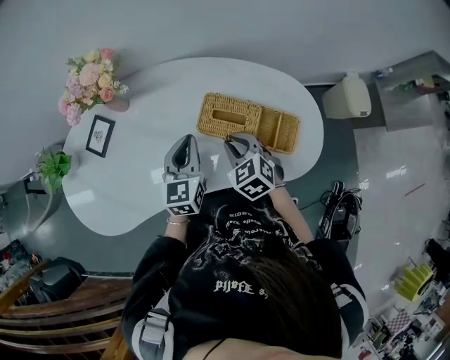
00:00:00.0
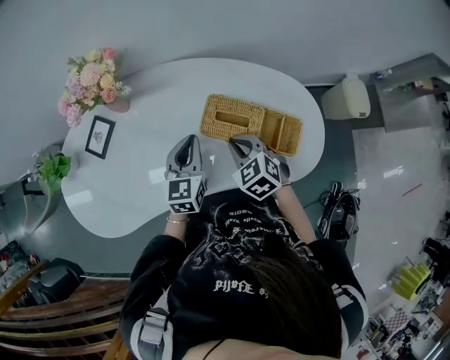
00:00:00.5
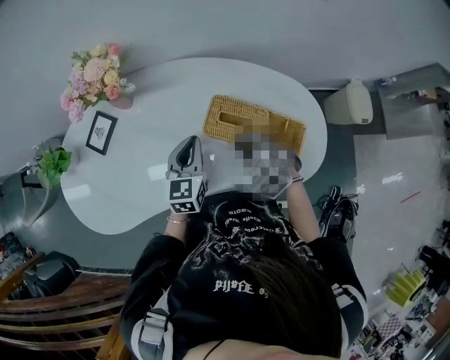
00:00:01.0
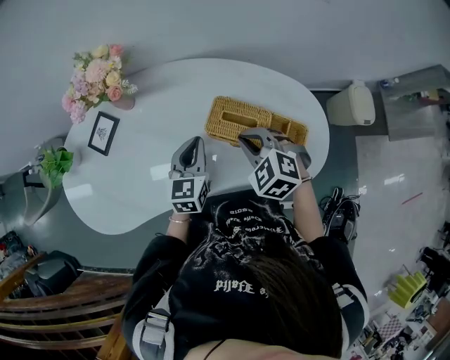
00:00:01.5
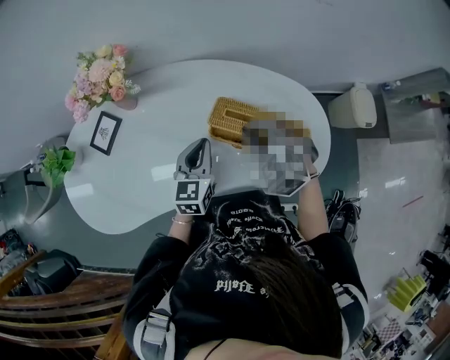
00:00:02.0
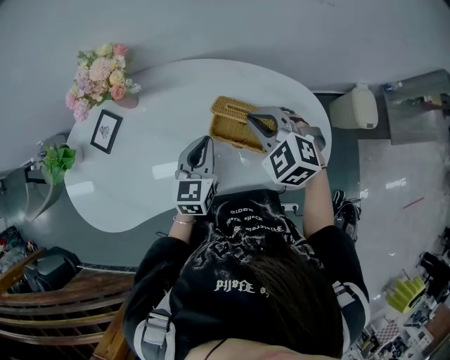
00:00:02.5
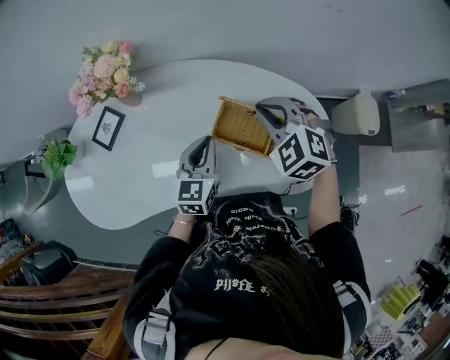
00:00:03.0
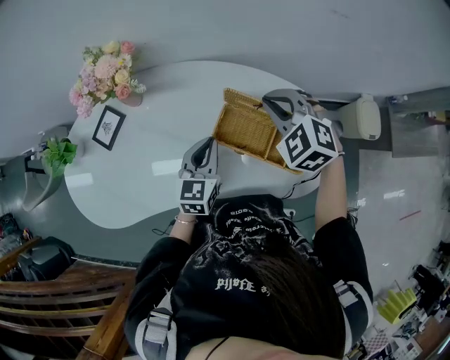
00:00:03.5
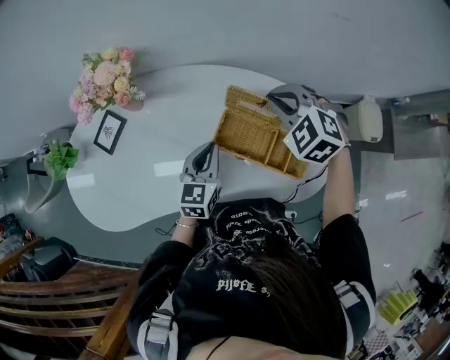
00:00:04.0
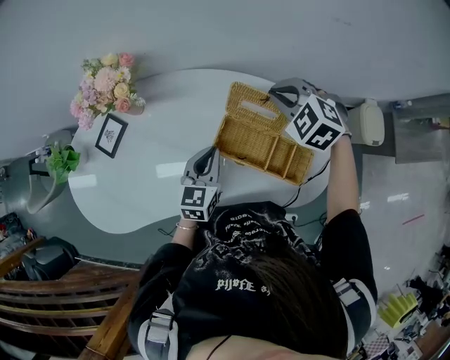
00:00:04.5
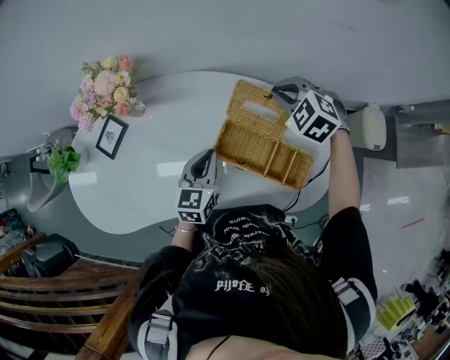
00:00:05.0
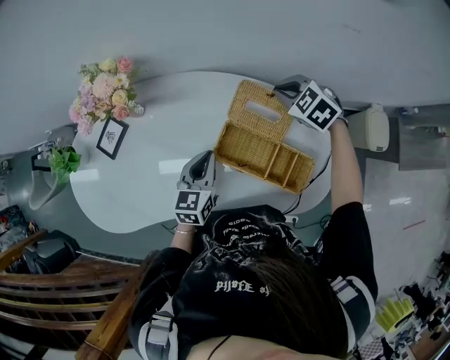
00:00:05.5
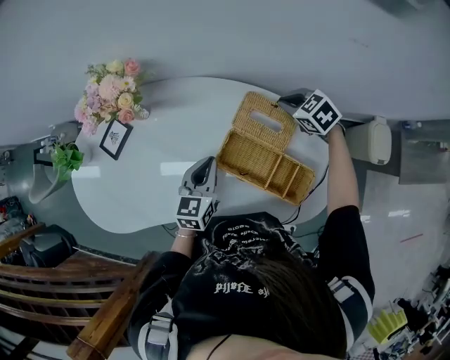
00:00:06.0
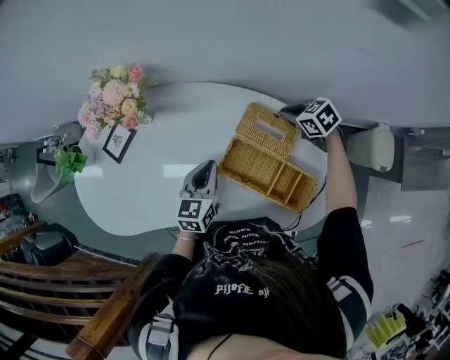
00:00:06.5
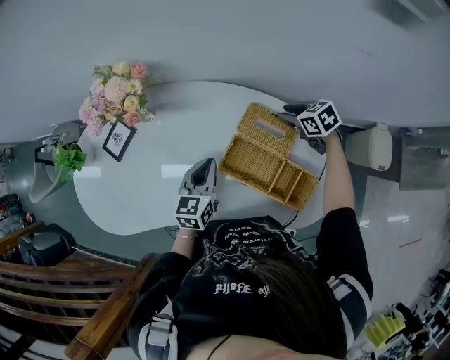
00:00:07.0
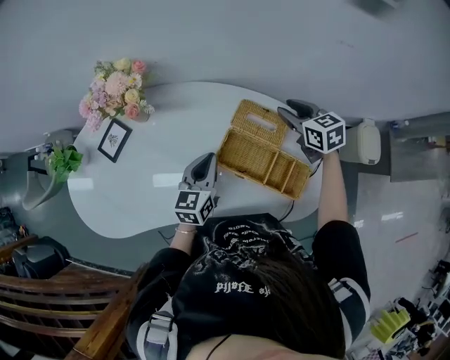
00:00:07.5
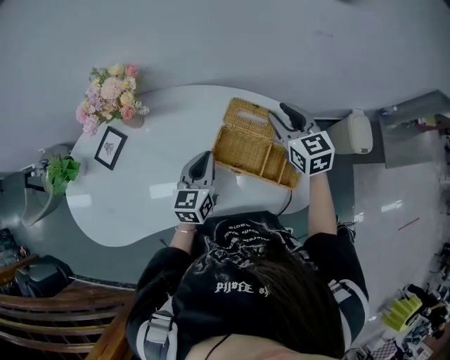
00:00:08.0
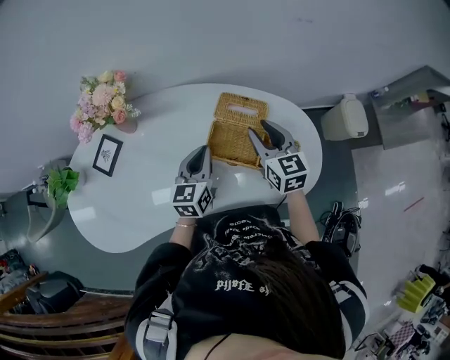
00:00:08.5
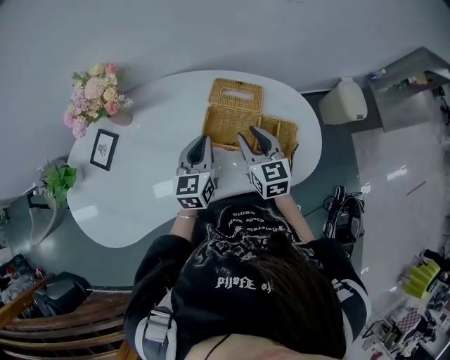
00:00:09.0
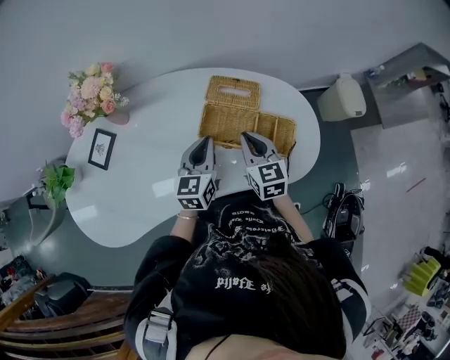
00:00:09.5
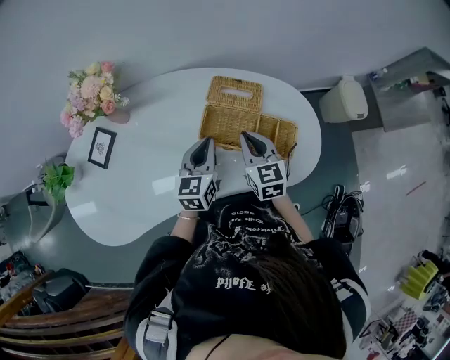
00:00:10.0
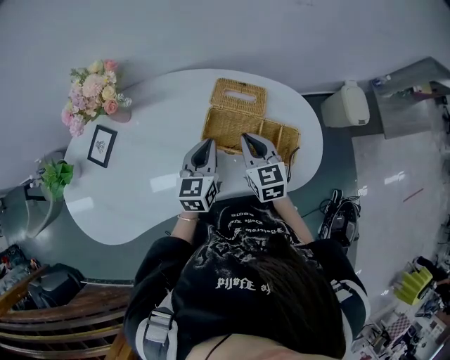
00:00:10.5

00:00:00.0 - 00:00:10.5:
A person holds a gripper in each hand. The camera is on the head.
00:00:00.0 - 00:00:02.0: The right gripper heads upward, covering some 5 cm, and swivels approximately 30 degrees.
00:00:02.0 - 00:00:04.0: The right gripper goes roughly 15 cm forward and to the right.
00:00:04.0 - 00:00:06.5: The right gripper is displaced downward, forward and to the right by about 20 cm, and changes its angle by approximately 40 degrees.
00:00:06.5 - 00:00:08.5: The left gripper ends up roughly 5 cm from where it was. The right gripper shifts by roughly 20 cm, points its fingers approximately 30 degrees further upward, and opens its fingers.
00:00:08.5 - 00:00:10.5: The right gripper moves downward, roughly 5 cm, and closes its fingers.

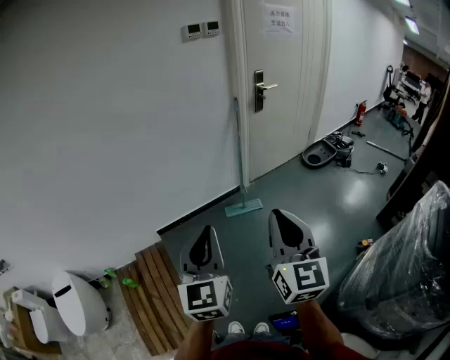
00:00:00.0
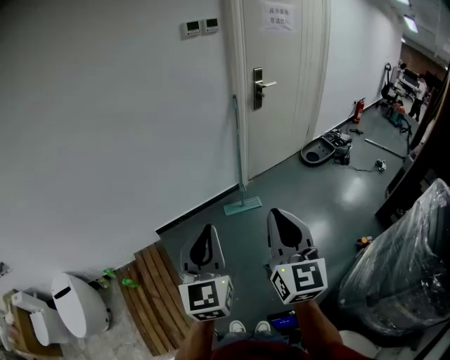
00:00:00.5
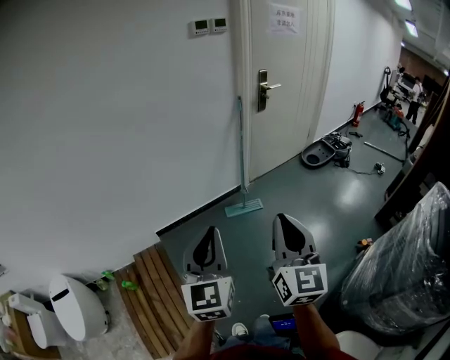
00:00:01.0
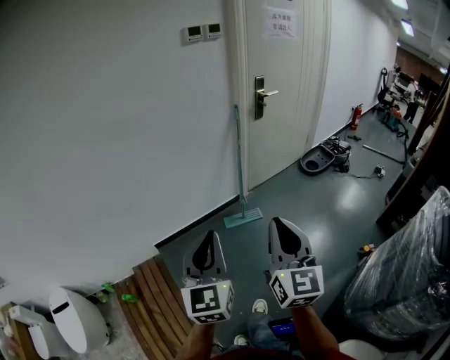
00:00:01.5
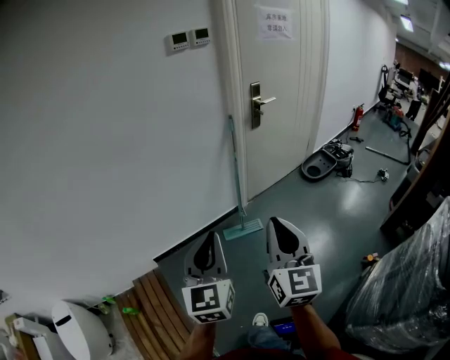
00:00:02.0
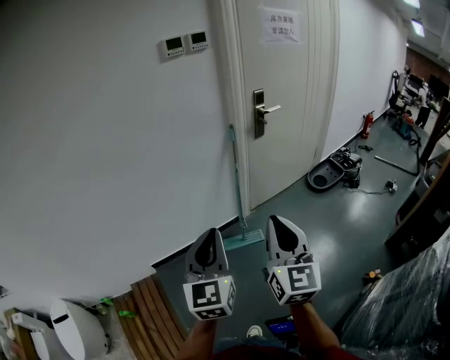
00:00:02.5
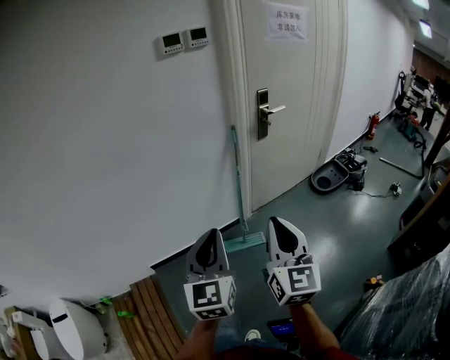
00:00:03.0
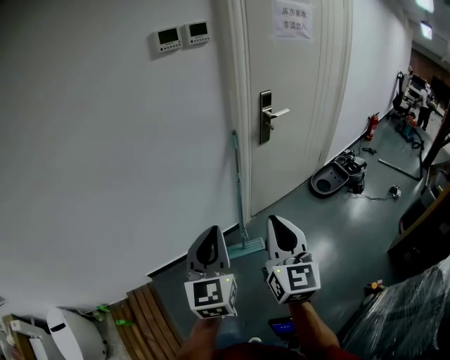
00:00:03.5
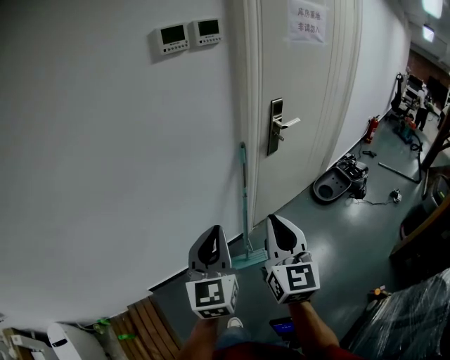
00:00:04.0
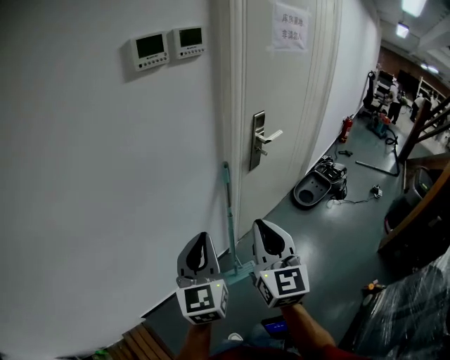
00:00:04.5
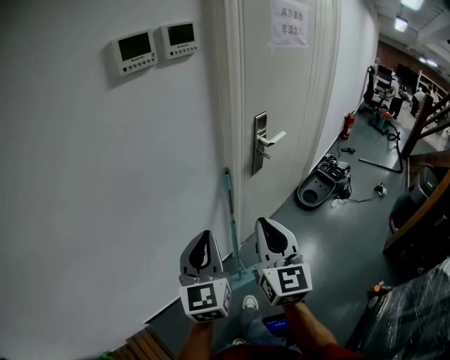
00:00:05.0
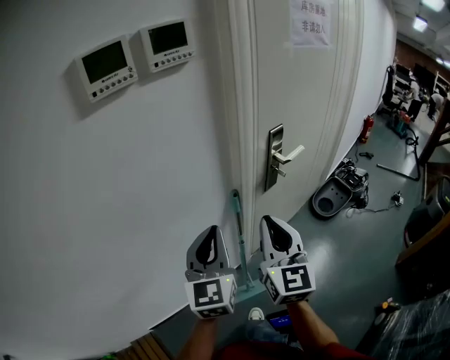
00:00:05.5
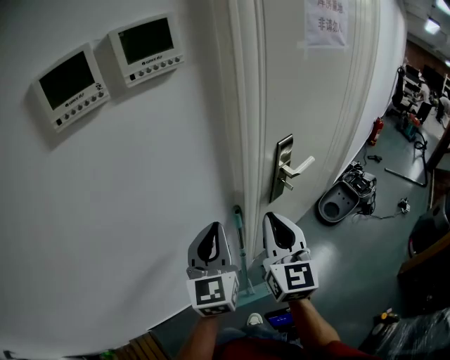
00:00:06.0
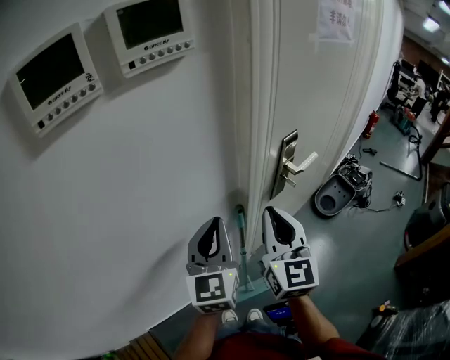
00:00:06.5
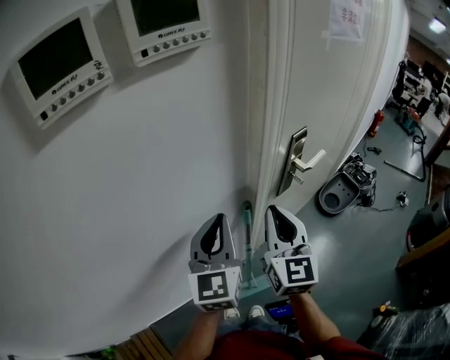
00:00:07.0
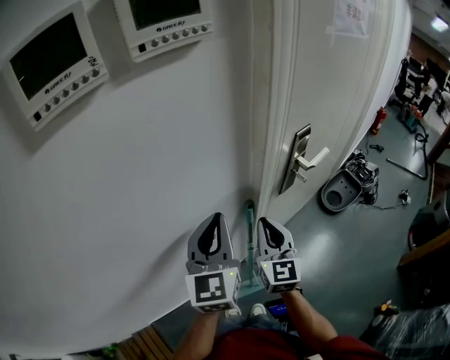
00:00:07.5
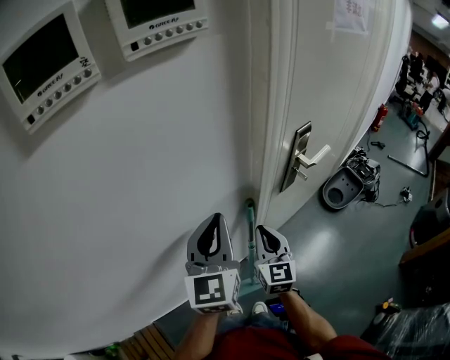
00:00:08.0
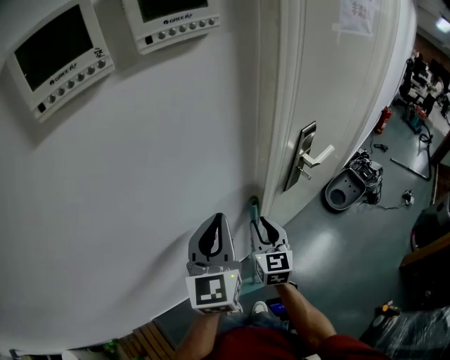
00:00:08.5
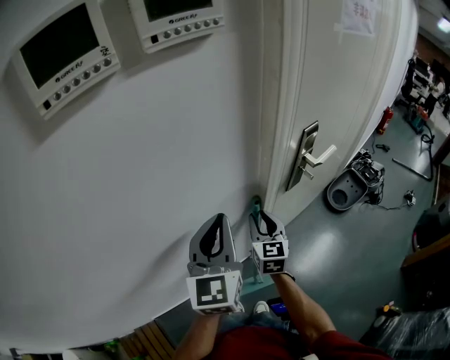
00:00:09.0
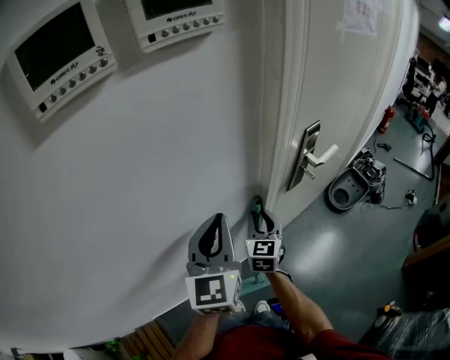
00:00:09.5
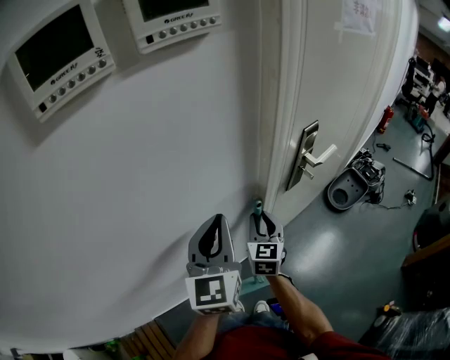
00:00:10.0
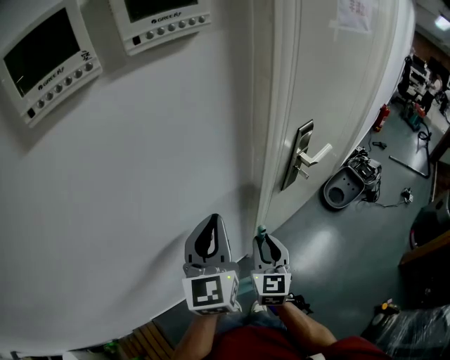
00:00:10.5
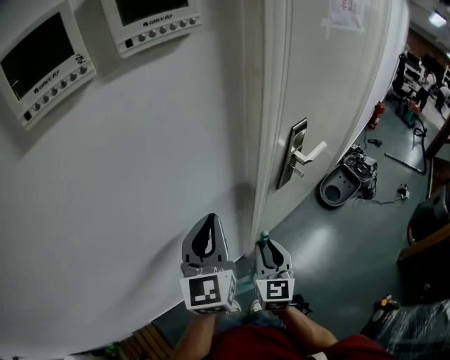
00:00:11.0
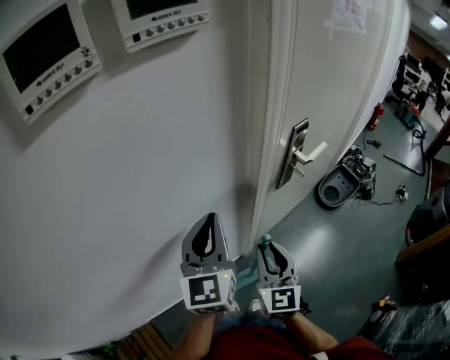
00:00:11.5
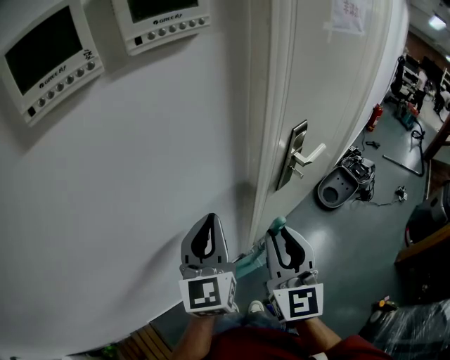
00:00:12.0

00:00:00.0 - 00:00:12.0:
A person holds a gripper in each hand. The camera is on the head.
00:00:00.0 - 00:00:02.0: Both grippers travel together forward, some 20 cm.
00:00:02.0 - 00:00:04.0: The grippers both shift forward by approximately 35 cm.
00:00:04.0 - 00:00:06.0: The grippers both shift forward by some 40 cm.
00:00:06.0 - 00:00:08.0: The right gripper moves downward, about 15 cm.
00:00:08.0 - 00:00:10.0: The right gripper moves approximately 5 cm, and opens its fingers.
00:00:10.0 - 00:00:12.0: The right gripper heads upward and backward, covering approximately 20 cm.

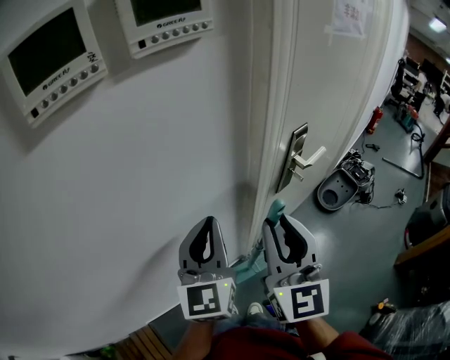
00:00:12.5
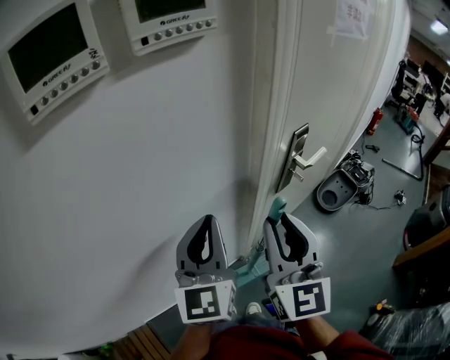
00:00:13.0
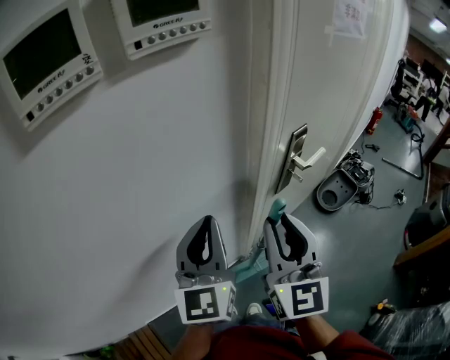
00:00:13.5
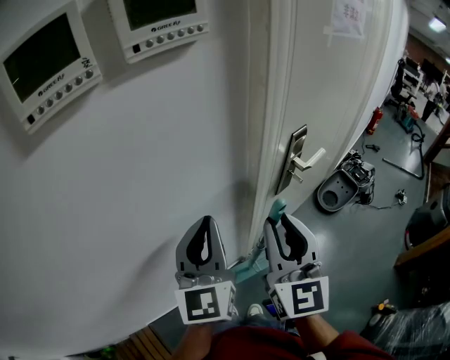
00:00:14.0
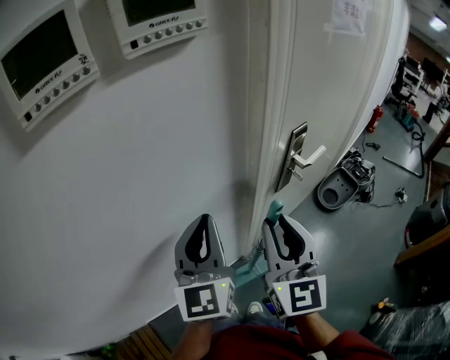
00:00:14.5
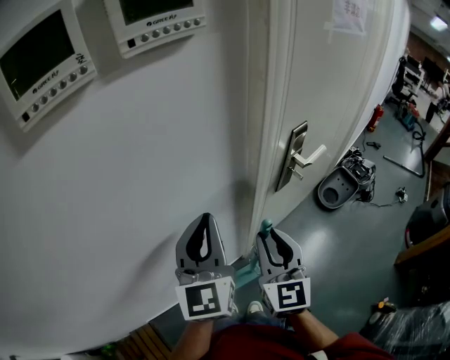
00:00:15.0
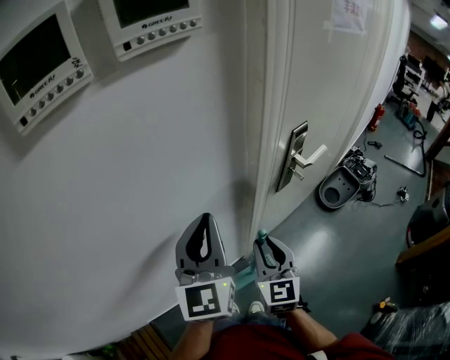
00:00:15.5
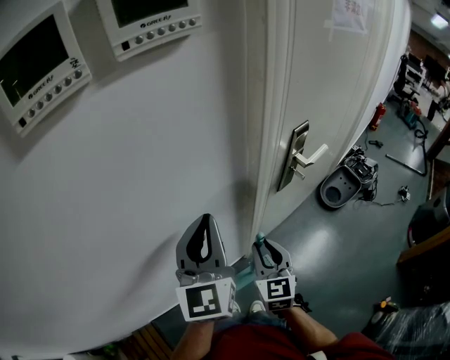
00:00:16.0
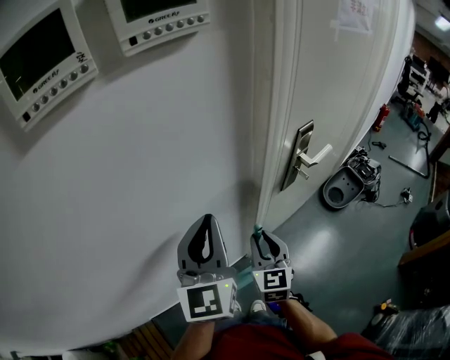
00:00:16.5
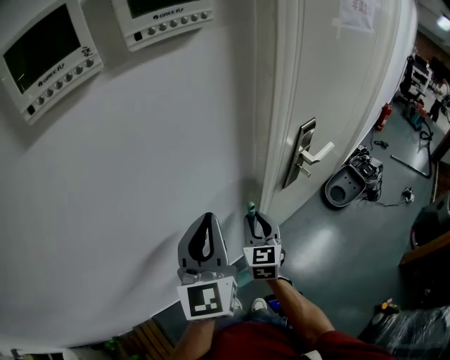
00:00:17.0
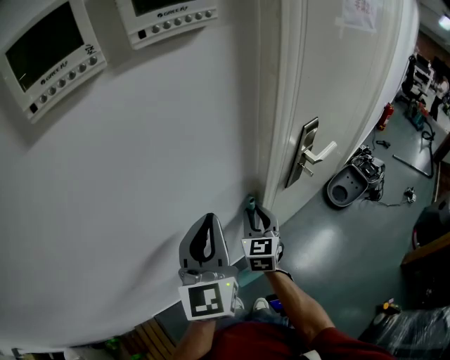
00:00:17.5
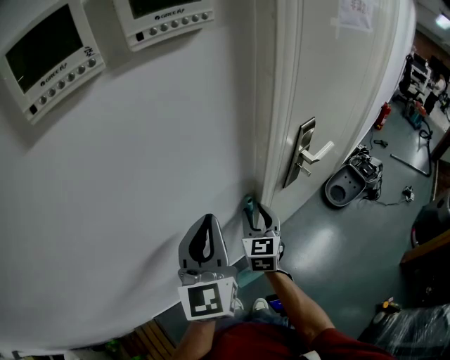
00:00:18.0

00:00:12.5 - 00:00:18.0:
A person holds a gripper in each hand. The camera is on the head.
00:00:12.5 - 00:00:14.5: The grippers move only a little.
00:00:14.5 - 00:00:16.0: The right gripper heads downward, covering roughly 20 cm.
00:00:16.0 - 00:00:18.0: The right gripper heads forward, covering about 10 cm.
